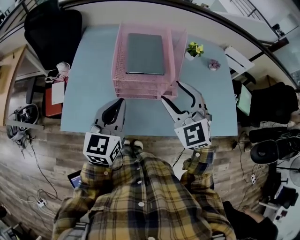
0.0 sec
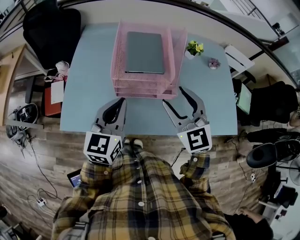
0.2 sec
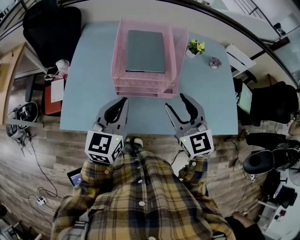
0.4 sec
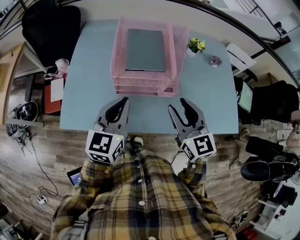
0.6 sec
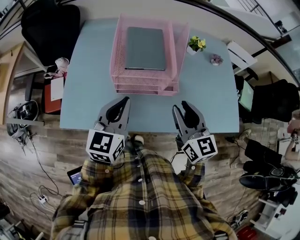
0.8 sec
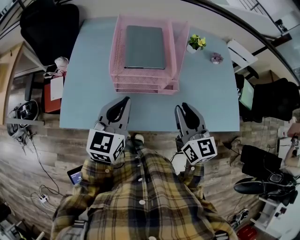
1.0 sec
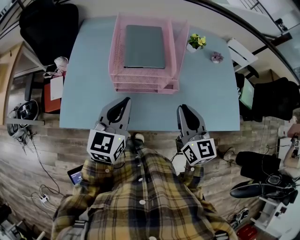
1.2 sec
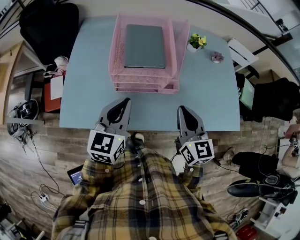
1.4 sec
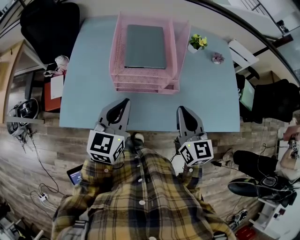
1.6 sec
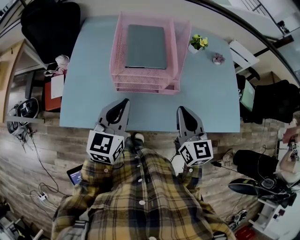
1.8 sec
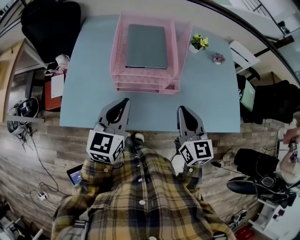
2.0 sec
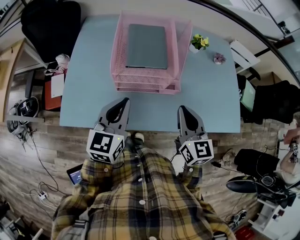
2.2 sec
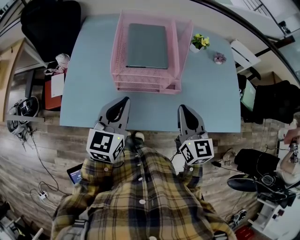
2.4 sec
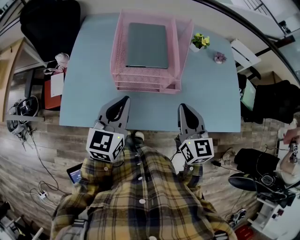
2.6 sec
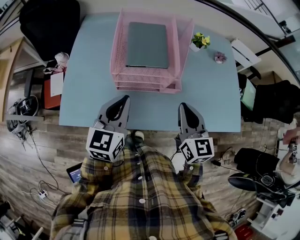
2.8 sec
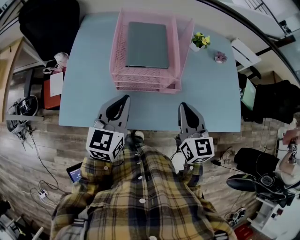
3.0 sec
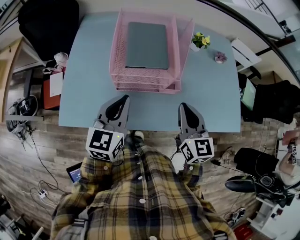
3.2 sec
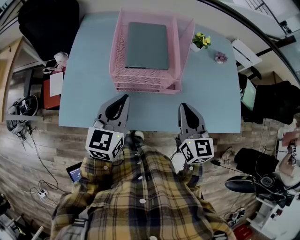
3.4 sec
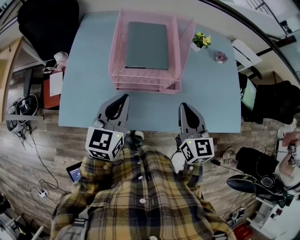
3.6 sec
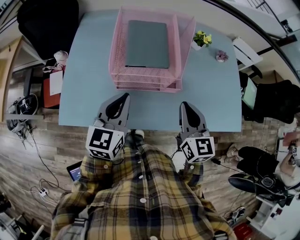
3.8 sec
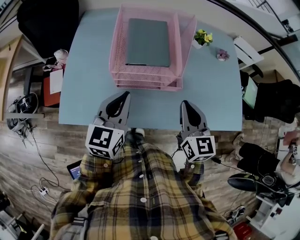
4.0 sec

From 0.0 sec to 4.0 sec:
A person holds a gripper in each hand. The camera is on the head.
From 0.0 sec to 1.4 sec: The right gripper shifts about 10 cm to the right and downward, twists approximately 40 degrees clockwise, seen from behind, and closes.
From 1.4 sec to 2.6 sec: Neither gripper changes place.
From 2.6 sec to 4.0 sec: The grippers move only a little.

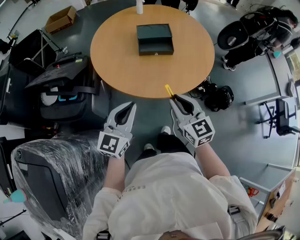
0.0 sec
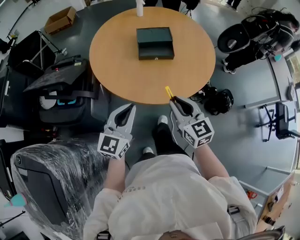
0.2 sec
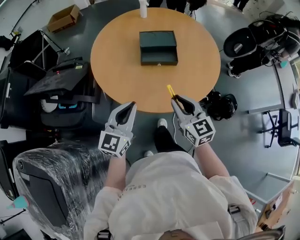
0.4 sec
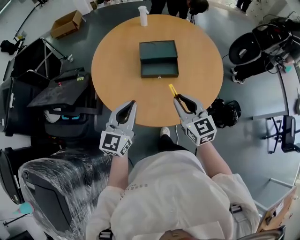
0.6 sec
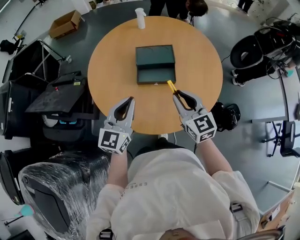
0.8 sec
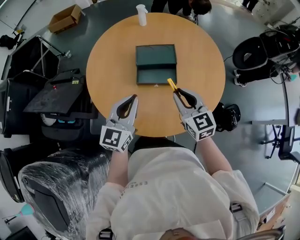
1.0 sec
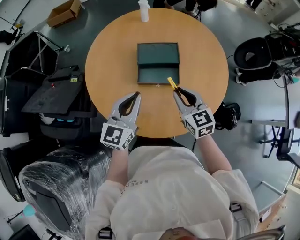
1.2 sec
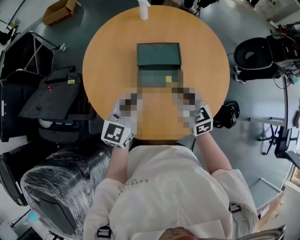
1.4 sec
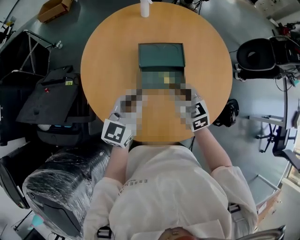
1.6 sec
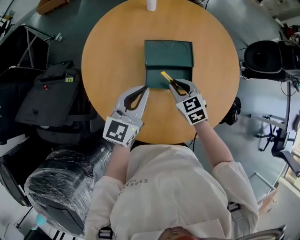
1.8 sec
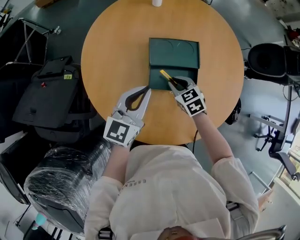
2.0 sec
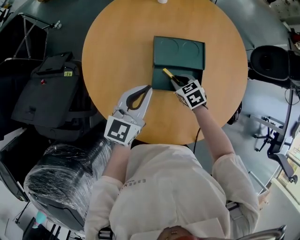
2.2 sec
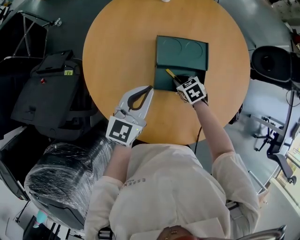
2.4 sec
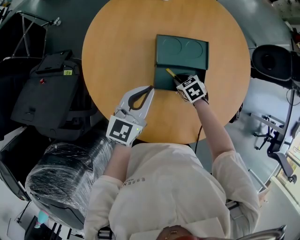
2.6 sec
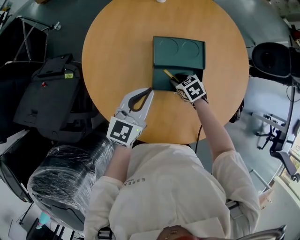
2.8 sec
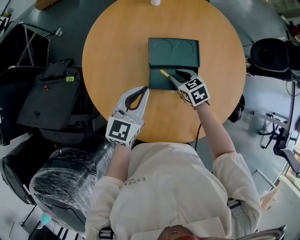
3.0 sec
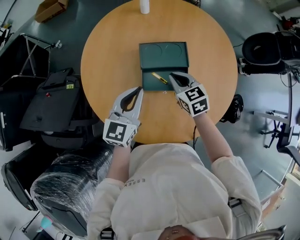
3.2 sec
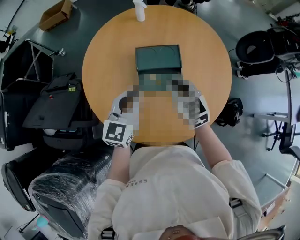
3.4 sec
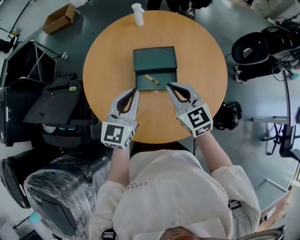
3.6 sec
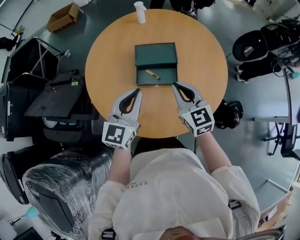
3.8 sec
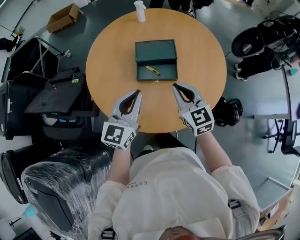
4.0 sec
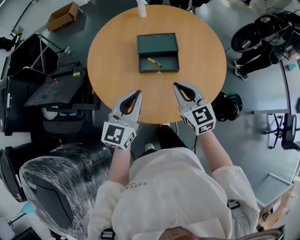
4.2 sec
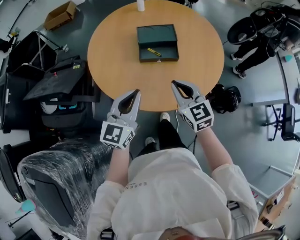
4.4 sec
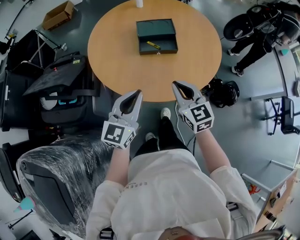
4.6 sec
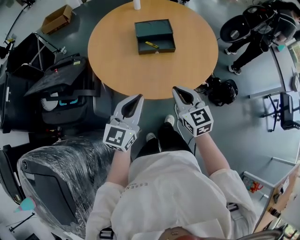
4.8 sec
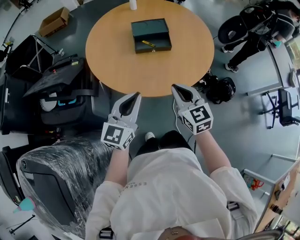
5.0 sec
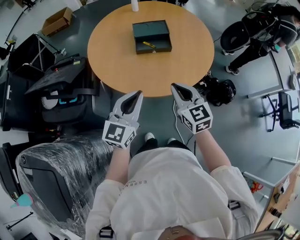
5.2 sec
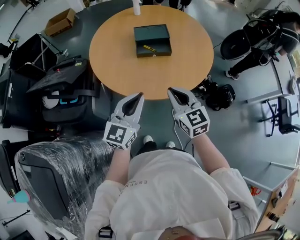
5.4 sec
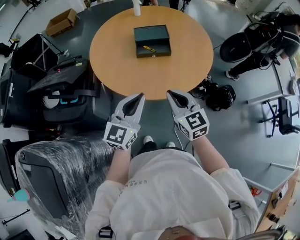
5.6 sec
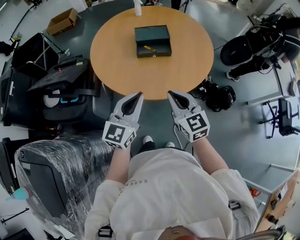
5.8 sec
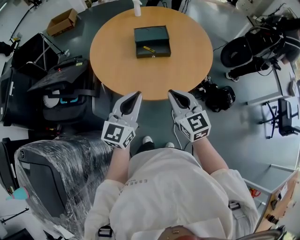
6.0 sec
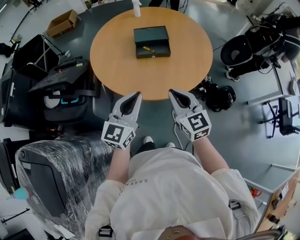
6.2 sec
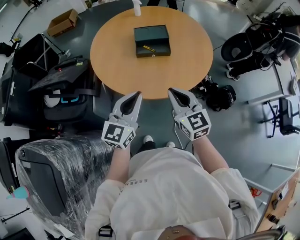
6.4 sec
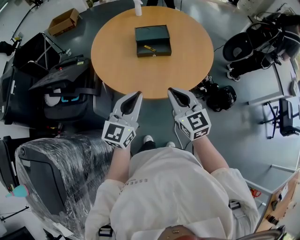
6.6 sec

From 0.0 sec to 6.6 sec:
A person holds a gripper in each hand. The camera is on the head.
From 0.0 sec to 1.6 sec: The two grippers go roughly 35 cm forward.
From 1.6 sec to 3.2 sec: The right gripper moves forward, roughly 5 cm, and goes downward and returns, approximately 20 cm each way.
From 3.2 sec to 5.0 sec: The two grippers go approximately 35 cm backward. The right gripper rotates approximately 20 degrees.
From 5.0 sec to 6.6 sec: The right gripper ends up about 5 cm from where it was.

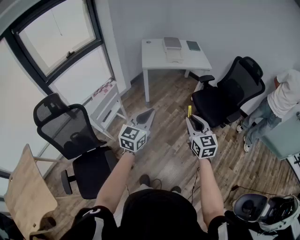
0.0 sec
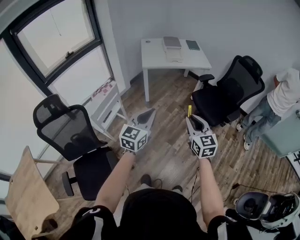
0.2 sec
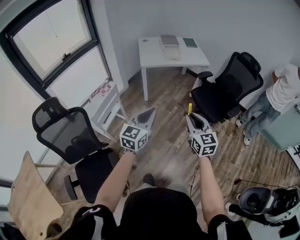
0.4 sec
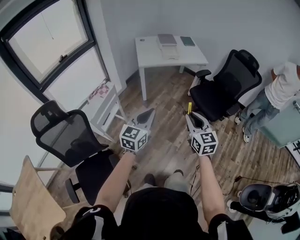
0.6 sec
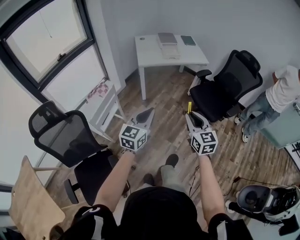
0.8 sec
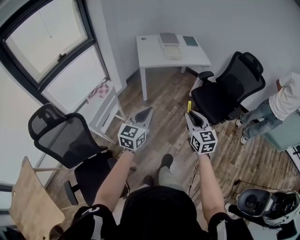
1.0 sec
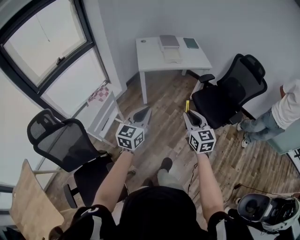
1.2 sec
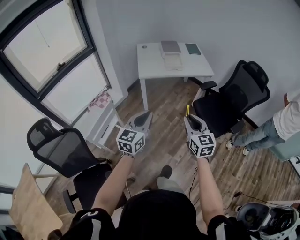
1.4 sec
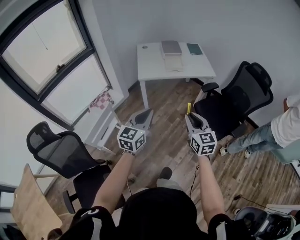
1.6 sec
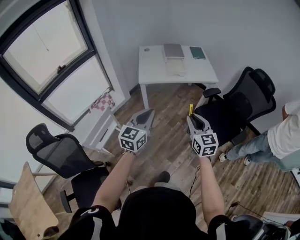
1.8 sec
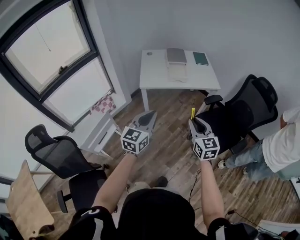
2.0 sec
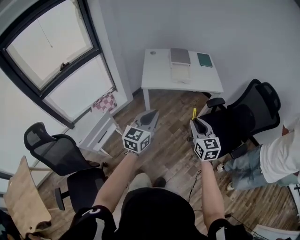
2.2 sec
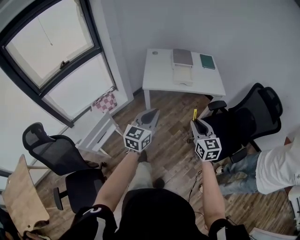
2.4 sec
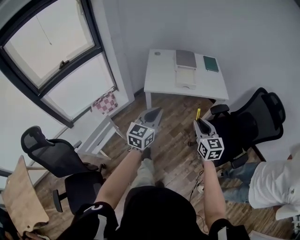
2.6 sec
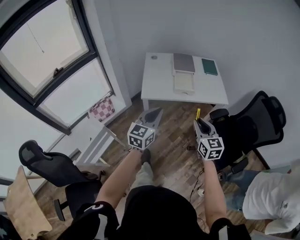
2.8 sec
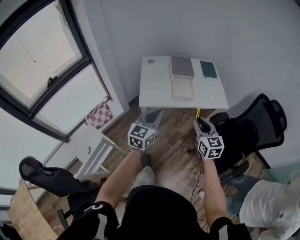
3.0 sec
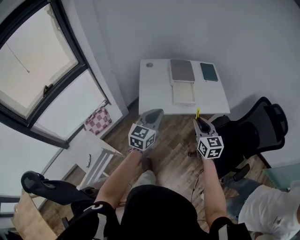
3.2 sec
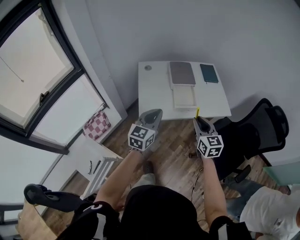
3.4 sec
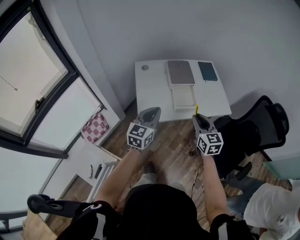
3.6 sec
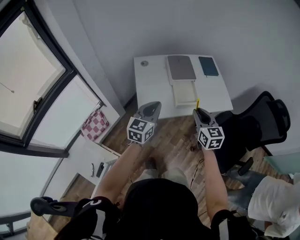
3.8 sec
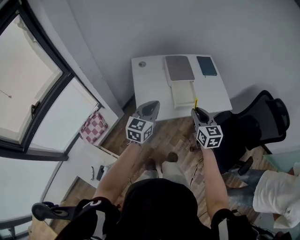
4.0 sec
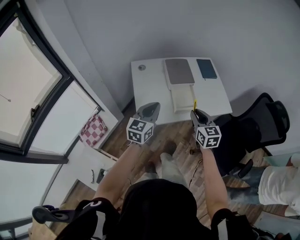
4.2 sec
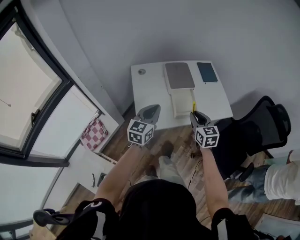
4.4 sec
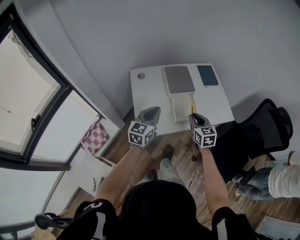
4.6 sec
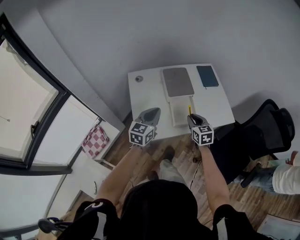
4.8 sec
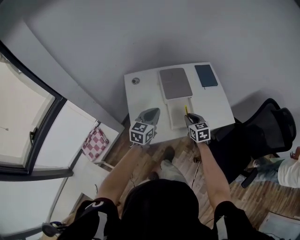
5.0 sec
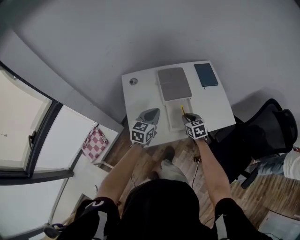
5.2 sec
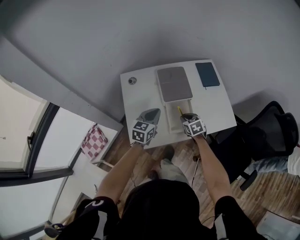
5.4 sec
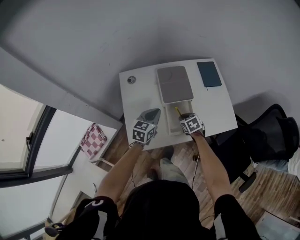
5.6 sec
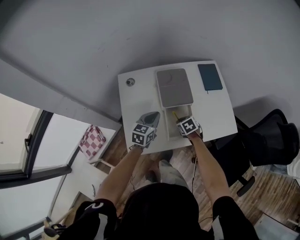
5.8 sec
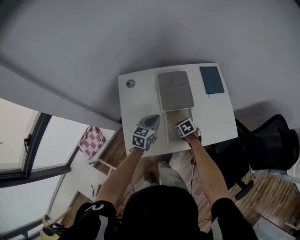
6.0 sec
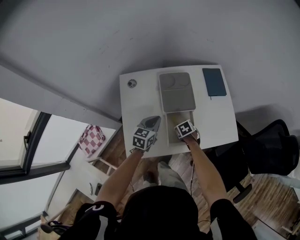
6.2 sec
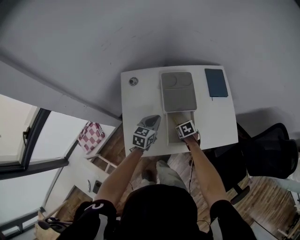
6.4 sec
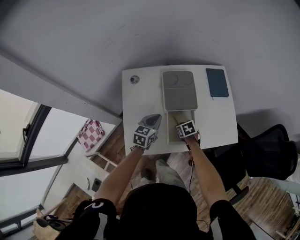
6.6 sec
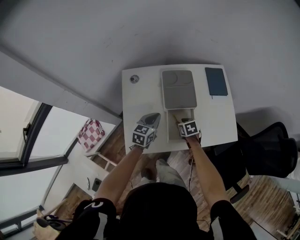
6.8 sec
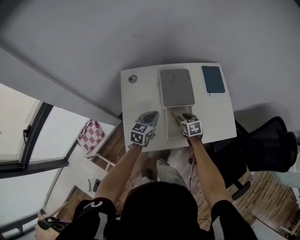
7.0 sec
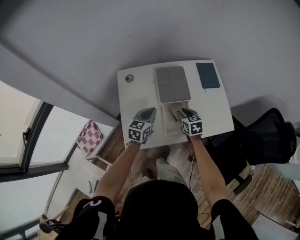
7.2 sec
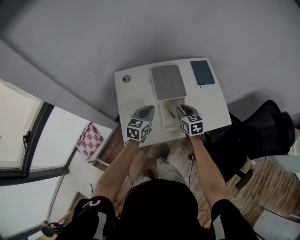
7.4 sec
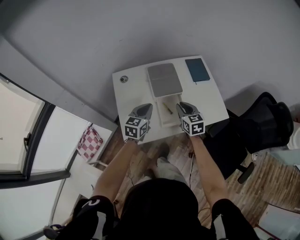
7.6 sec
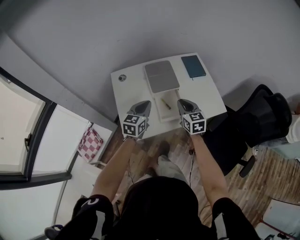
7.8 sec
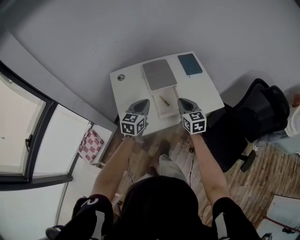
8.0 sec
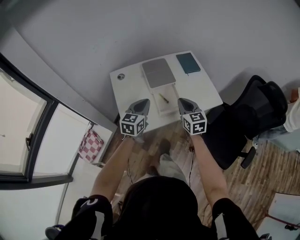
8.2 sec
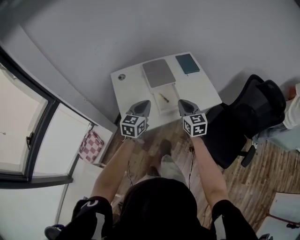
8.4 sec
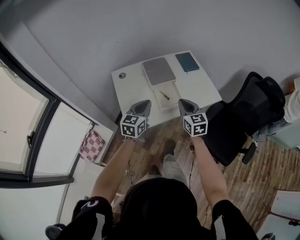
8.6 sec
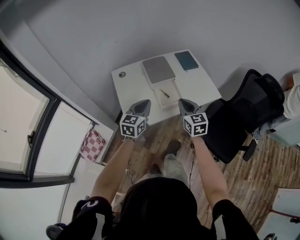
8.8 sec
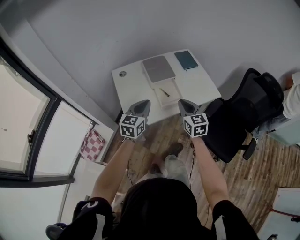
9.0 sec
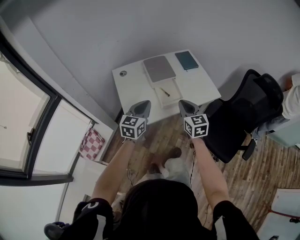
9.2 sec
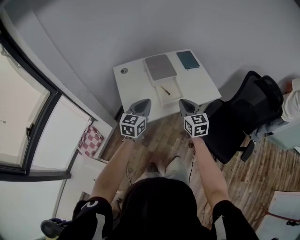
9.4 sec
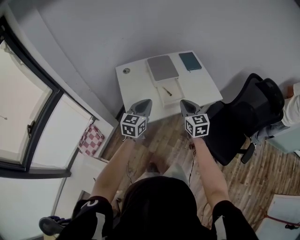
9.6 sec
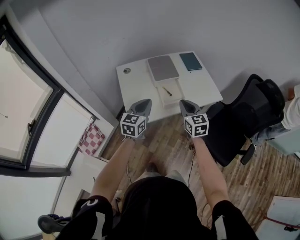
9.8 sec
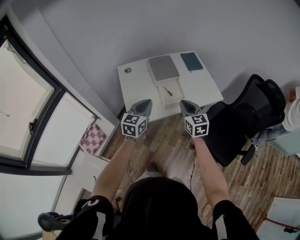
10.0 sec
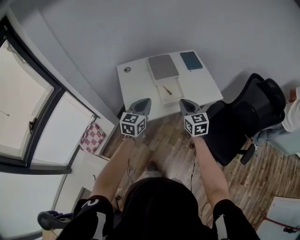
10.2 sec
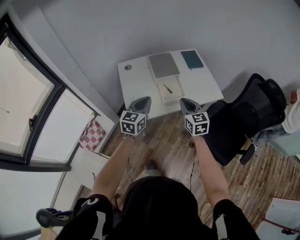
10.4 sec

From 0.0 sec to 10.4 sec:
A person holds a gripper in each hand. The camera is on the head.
From 0.0 sec to 1.4 sec: The grippers both shift forward by some 15 cm.
From 1.4 sec to 3.0 sec: The two grippers go some 40 cm forward.
From 3.0 sec to 4.4 sec: The grippers both shift forward by some 25 cm.
From 4.4 sec to 6.0 sec: The left gripper travels forward and downward by roughly 25 cm. The right gripper is displaced downward and forward by about 35 cm, and tips its fingers downward by about 40 degrees.
From 6.0 sec to 7.4 sec: The right gripper travels upward by approximately 15 cm, and tips its fingers upward by roughly 30 degrees. The left gripper is displaced upward by roughly 5 cm.
From 7.4 sec to 9.0 sec: The grippers both shift backward and upward by about 25 cm. The right gripper turns by about 20 degrees, and closes up.
From 9.0 sec to 10.4 sec: The grippers move only a little.

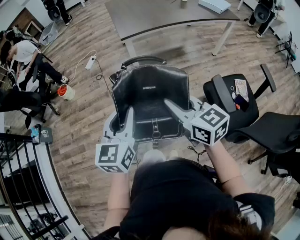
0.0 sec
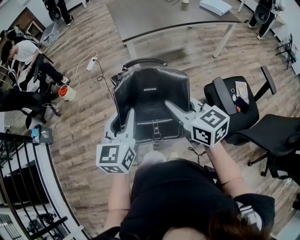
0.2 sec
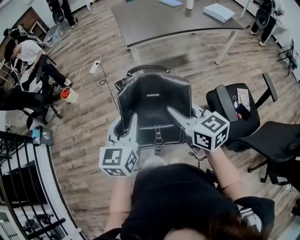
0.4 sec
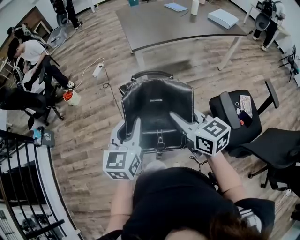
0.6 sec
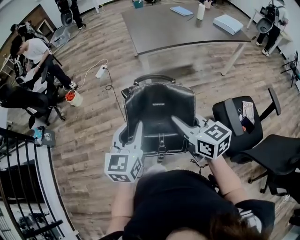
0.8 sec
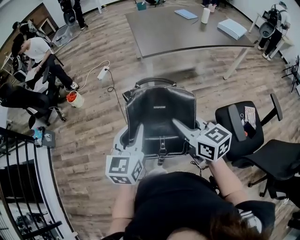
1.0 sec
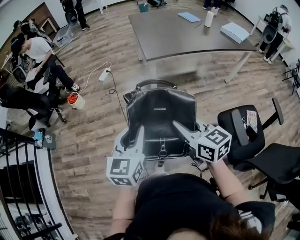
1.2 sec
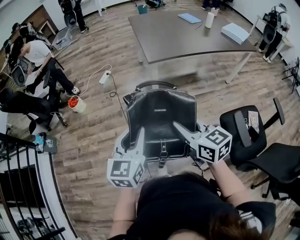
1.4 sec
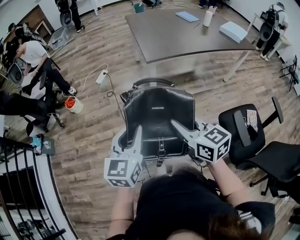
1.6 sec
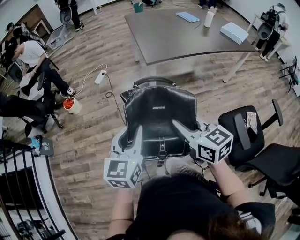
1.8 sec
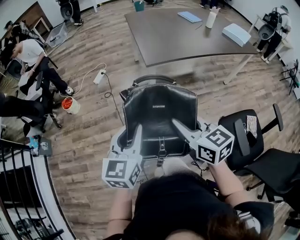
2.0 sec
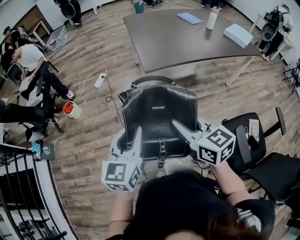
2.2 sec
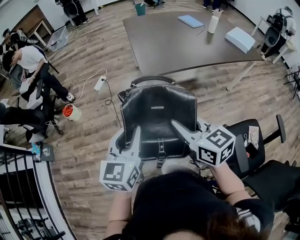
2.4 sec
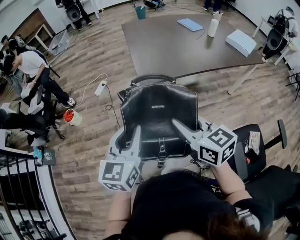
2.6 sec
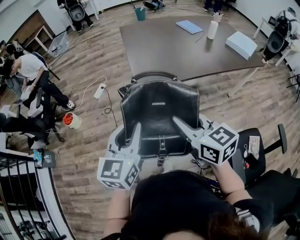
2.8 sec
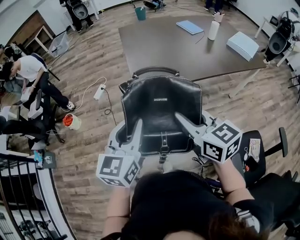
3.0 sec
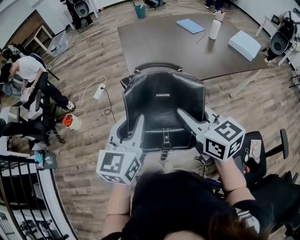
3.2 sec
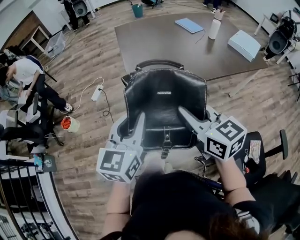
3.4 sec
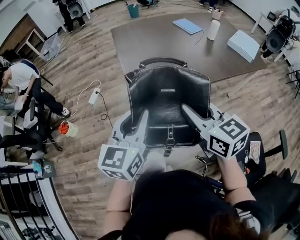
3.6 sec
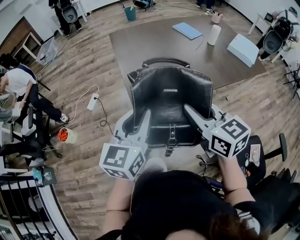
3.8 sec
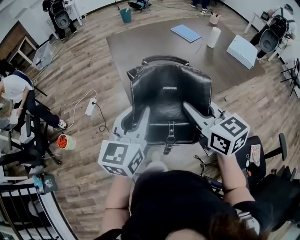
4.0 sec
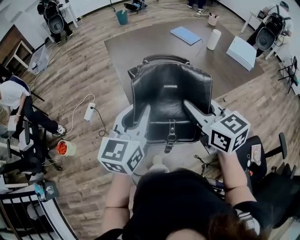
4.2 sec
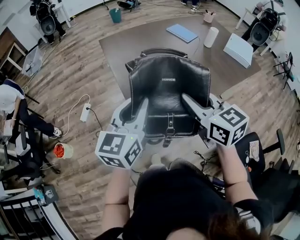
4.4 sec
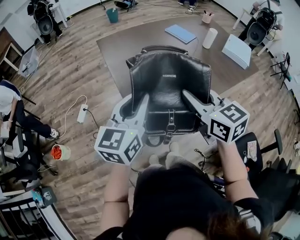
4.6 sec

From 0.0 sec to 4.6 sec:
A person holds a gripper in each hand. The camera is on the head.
From 0.0 sec to 1.6 sec: The grippers both shift forward and to the left by about 15 cm.
From 1.6 sec to 3.0 sec: The two grippers go about 30 cm forward and to the right.
From 3.0 sec to 4.6 sec: Both grippers travel together forward, some 30 cm.
